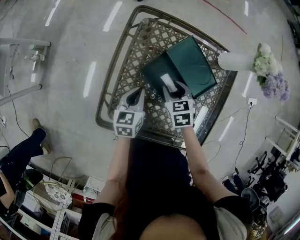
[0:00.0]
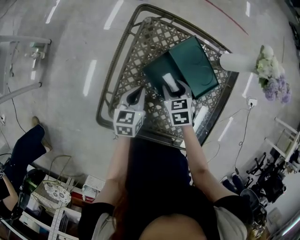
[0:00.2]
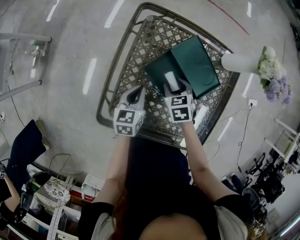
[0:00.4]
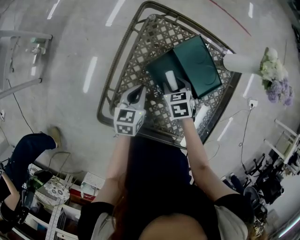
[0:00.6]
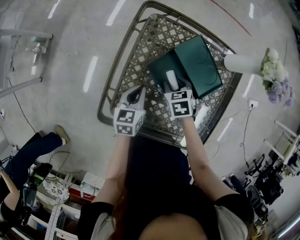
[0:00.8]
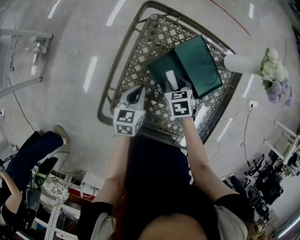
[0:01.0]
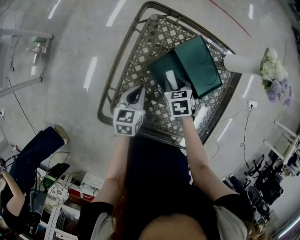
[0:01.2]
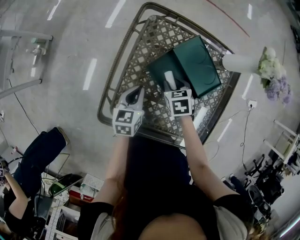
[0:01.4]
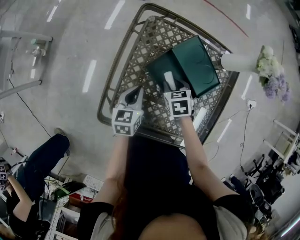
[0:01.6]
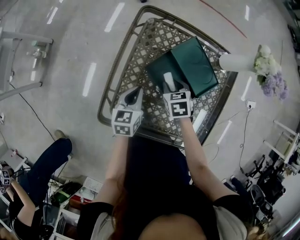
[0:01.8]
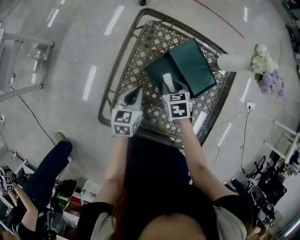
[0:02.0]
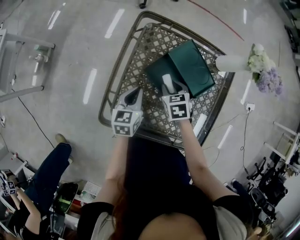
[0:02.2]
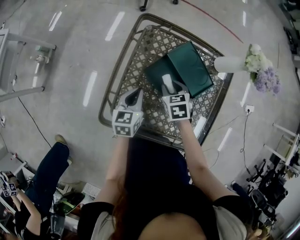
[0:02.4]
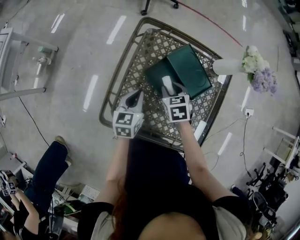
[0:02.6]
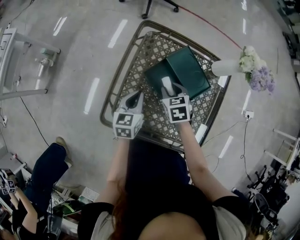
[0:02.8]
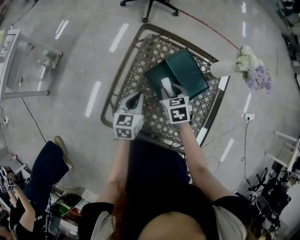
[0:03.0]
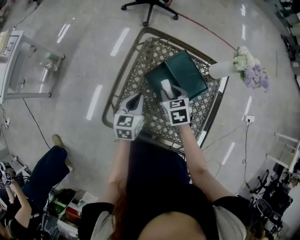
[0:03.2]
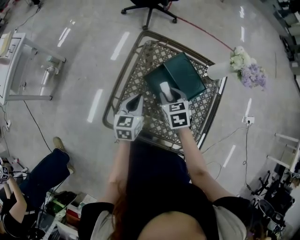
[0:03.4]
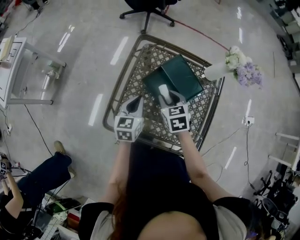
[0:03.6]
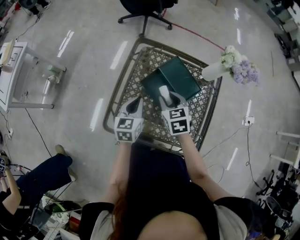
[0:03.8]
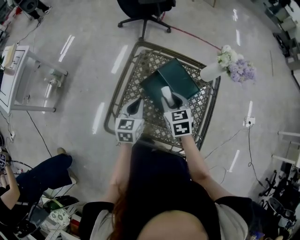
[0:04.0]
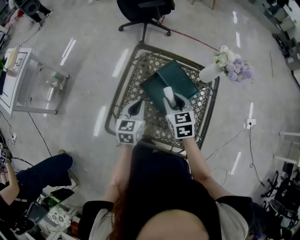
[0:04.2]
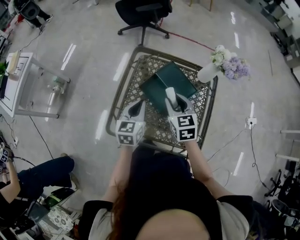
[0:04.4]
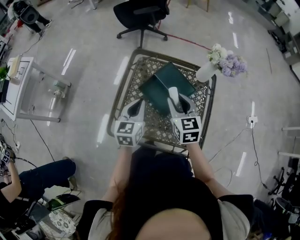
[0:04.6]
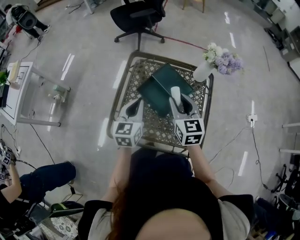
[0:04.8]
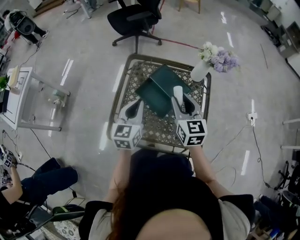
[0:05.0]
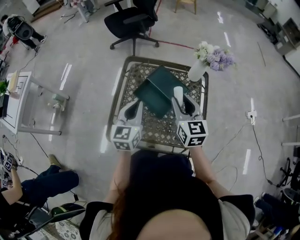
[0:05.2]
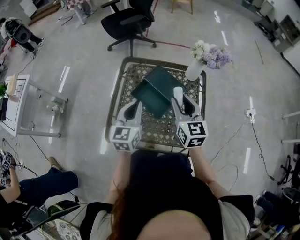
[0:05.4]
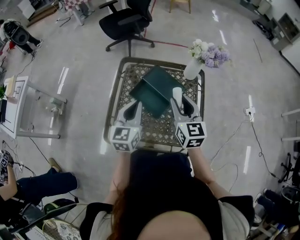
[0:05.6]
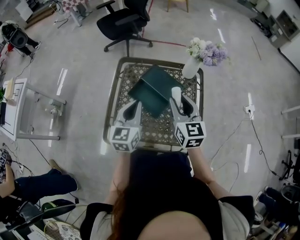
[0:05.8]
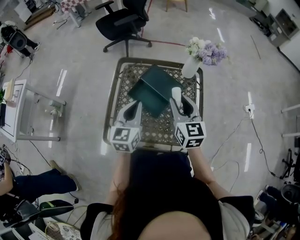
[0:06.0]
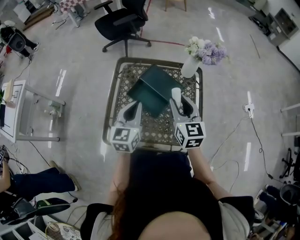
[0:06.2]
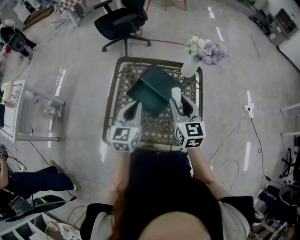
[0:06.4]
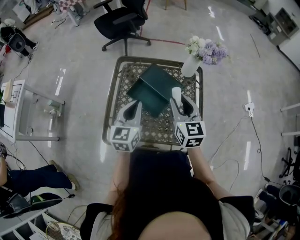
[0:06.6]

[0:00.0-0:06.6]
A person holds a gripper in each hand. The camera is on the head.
0:00.0 to 0:01.6: The grippers stay close to where they were, moving slightly.
0:01.6 to 0:03.2: The grippers both shift upward by some 10 cm.
0:03.2 to 0:05.0: The right gripper is displaced upward and to the right by about 20 cm, and tilts its fingers some 30 degrees upward. Meanwhile the left gripper shifts about 15 cm upward.
0:05.0 to 0:06.6: There are only small adjustments of the grippers.

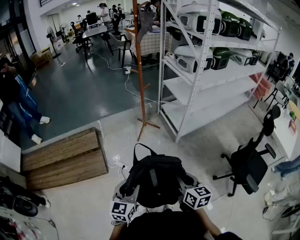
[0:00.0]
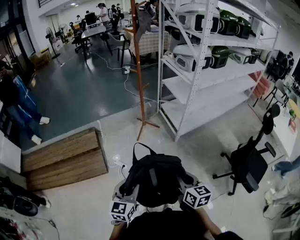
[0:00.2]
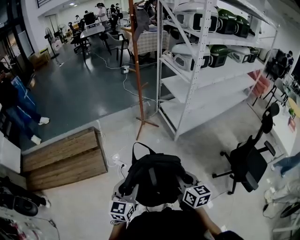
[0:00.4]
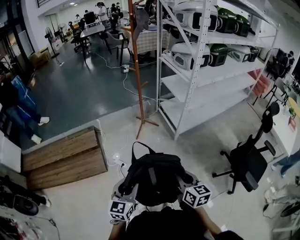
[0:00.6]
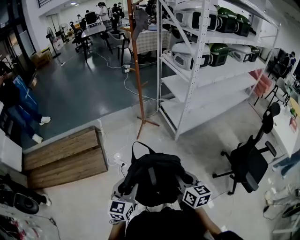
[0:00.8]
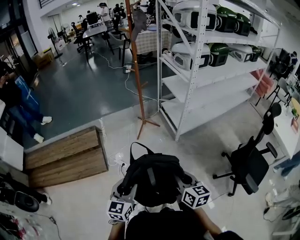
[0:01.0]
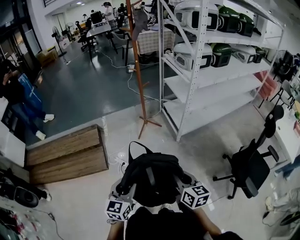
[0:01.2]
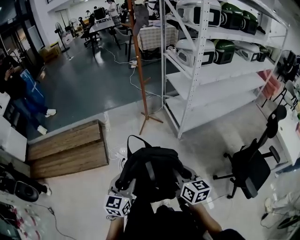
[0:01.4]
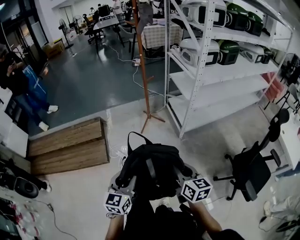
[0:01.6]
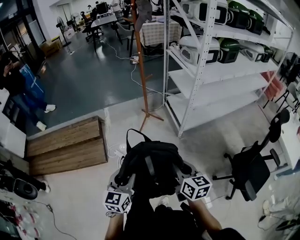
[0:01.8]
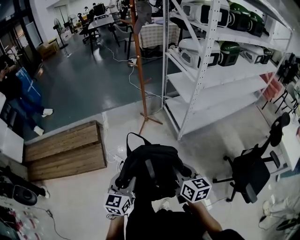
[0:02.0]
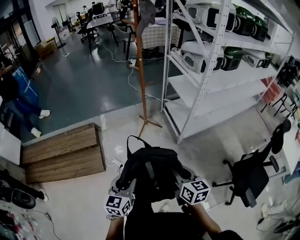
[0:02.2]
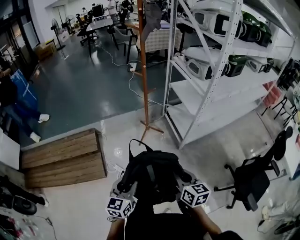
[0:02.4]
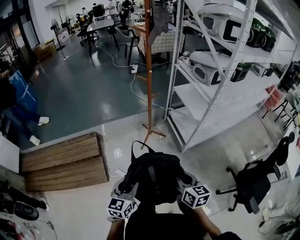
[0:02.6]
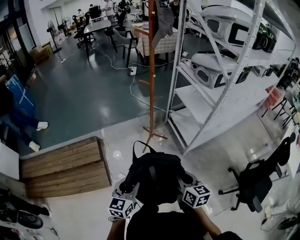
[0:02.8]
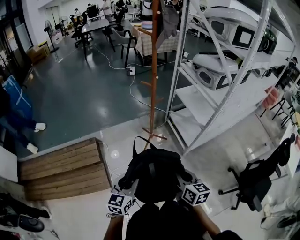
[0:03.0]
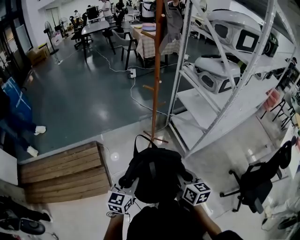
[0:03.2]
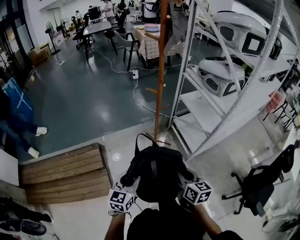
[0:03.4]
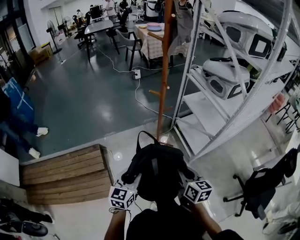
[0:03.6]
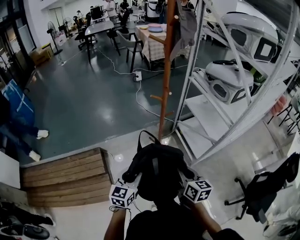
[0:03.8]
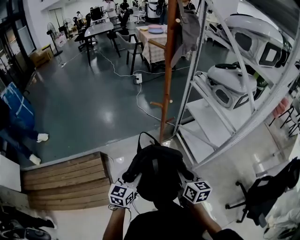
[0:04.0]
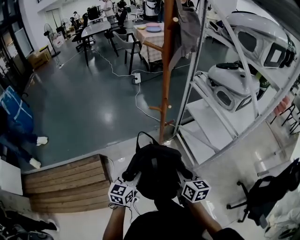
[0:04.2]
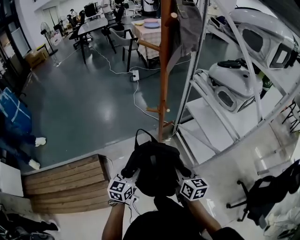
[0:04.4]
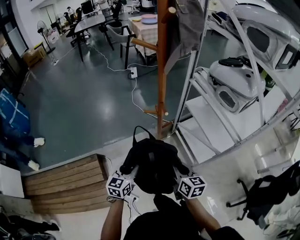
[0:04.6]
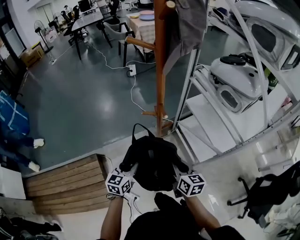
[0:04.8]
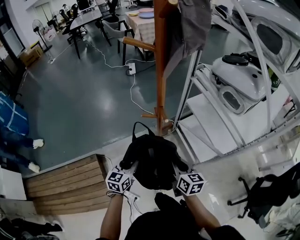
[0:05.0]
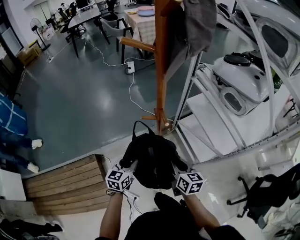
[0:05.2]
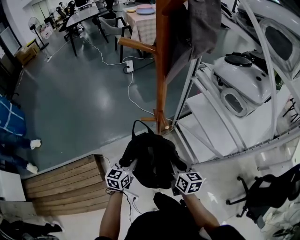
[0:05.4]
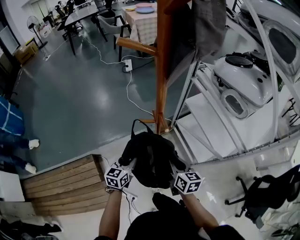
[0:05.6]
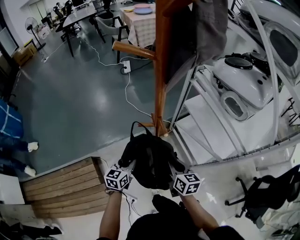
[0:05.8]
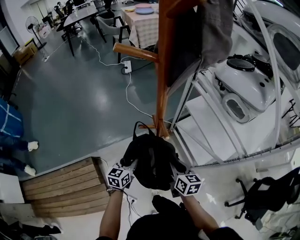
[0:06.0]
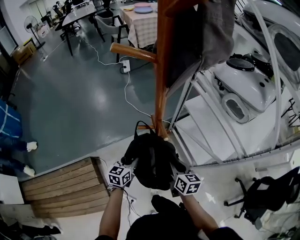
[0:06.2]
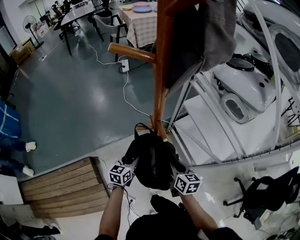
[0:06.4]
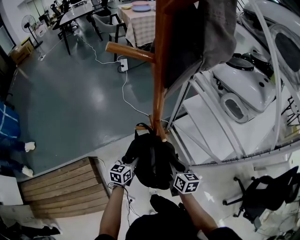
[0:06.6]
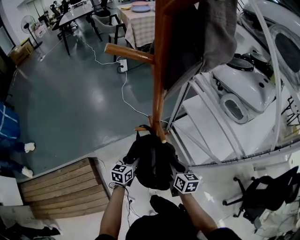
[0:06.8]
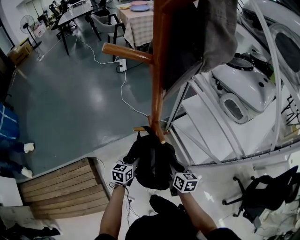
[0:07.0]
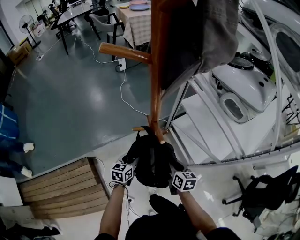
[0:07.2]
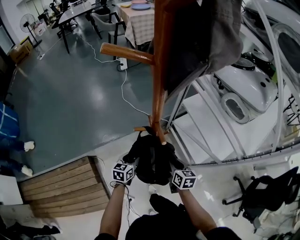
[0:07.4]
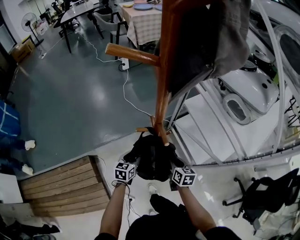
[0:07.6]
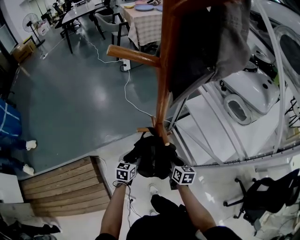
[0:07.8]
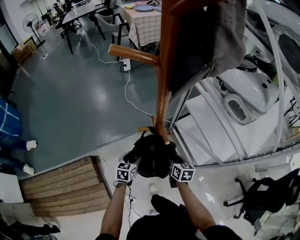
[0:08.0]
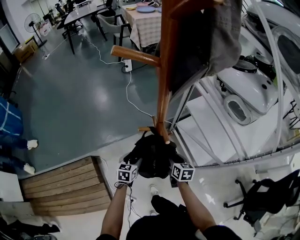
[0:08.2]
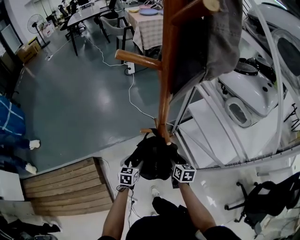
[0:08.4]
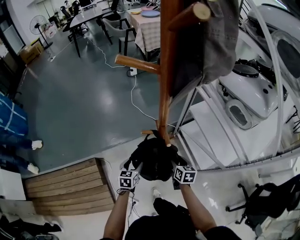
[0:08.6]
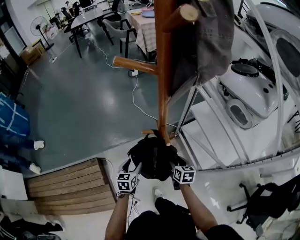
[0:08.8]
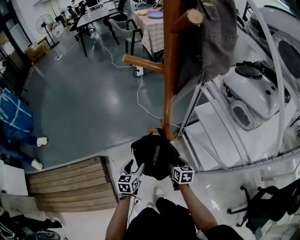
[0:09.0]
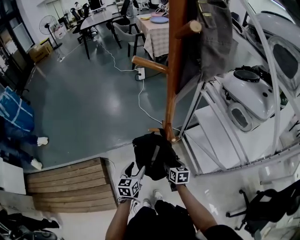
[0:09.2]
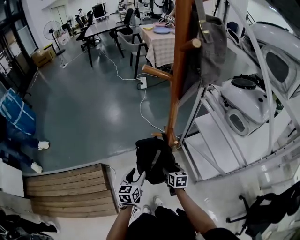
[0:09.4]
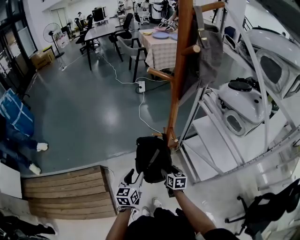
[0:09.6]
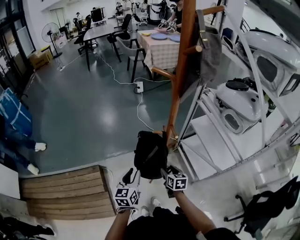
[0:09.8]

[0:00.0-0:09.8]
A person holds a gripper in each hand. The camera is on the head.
0:00.0 to 0:01.4: The two grippers go some 5 cm to the right.
0:01.4 to 0:02.8: The grippers both shift forward and to the left by some 30 cm.
0:02.8 to 0:04.2: Both grippers travel together forward, about 30 cm.
0:04.2 to 0:05.6: Both grippers travel together forward and downward, approximately 20 cm.
0:05.6 to 0:07.0: Both grippers travel together downward, approximately 10 cm.
0:07.0 to 0:08.4: The right gripper ends up some 5 cm from where it was, and opens; the left gripper opens up.
0:08.4 to 0:09.8: The left gripper goes roughly 20 cm upward and backward, rotates roughly 30 degrees, and closes its fingers; the right gripper shifts approximately 15 cm to the left, backward and upward.

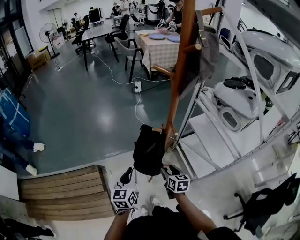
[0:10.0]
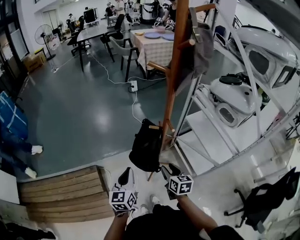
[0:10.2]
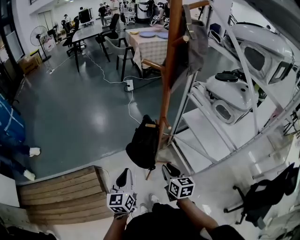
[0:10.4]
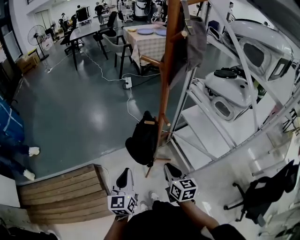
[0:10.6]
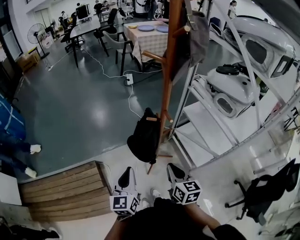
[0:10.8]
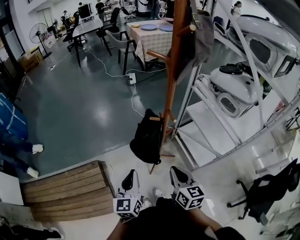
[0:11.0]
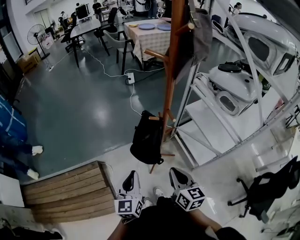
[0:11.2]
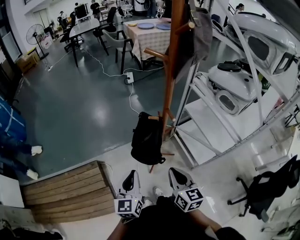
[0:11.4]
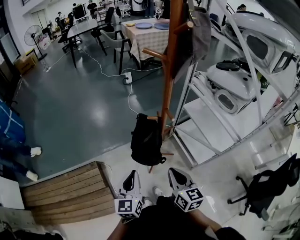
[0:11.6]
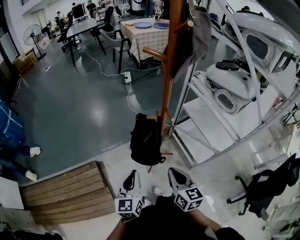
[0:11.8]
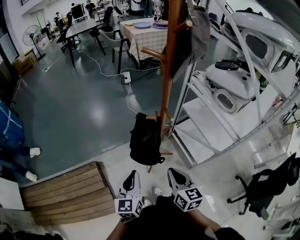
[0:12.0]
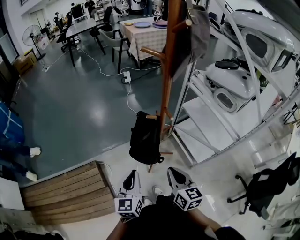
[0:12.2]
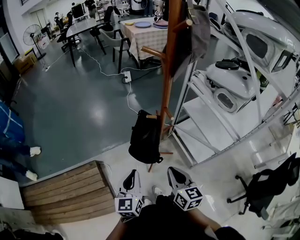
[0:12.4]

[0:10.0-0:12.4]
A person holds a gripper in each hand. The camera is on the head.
0:10.0 to 0:11.2: The right gripper moves upward and backward, about 15 cm, and closes, while the left gripper travels backward by roughly 5 cm.
0:11.2 to 0:12.4: The grippers stay close to where they were, moving slightly.

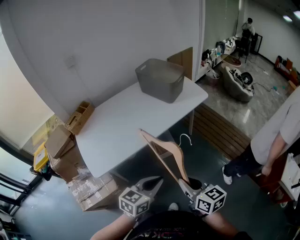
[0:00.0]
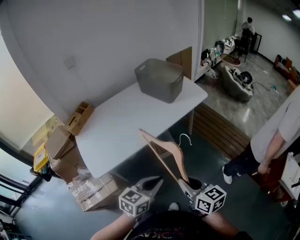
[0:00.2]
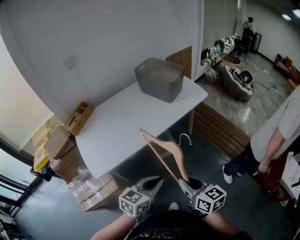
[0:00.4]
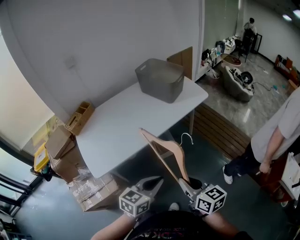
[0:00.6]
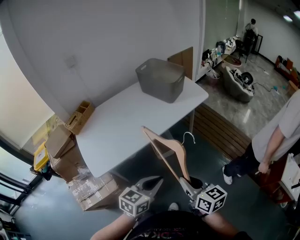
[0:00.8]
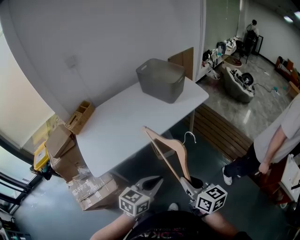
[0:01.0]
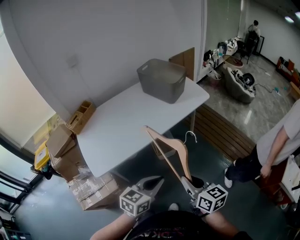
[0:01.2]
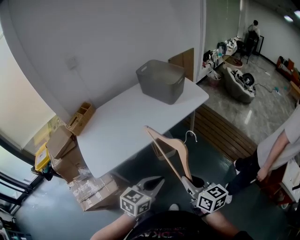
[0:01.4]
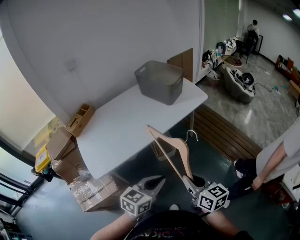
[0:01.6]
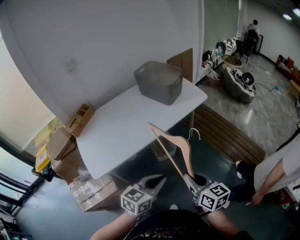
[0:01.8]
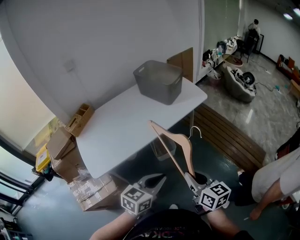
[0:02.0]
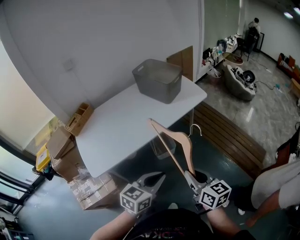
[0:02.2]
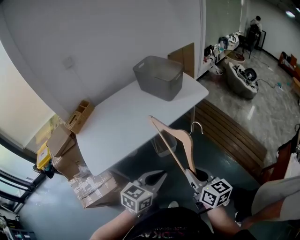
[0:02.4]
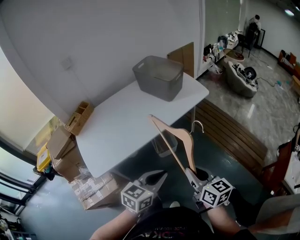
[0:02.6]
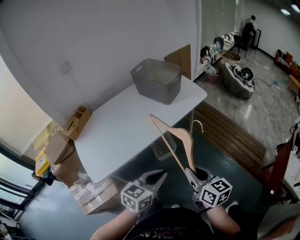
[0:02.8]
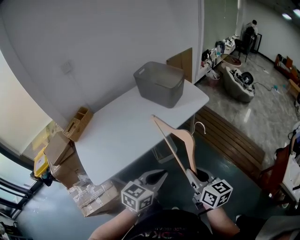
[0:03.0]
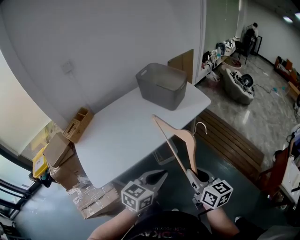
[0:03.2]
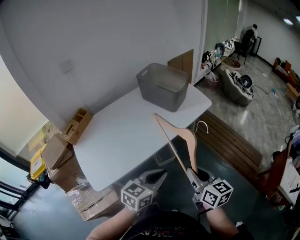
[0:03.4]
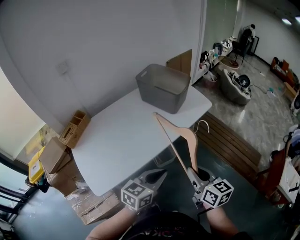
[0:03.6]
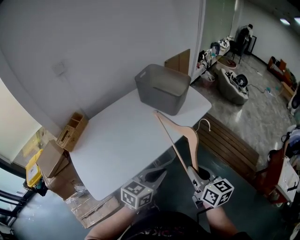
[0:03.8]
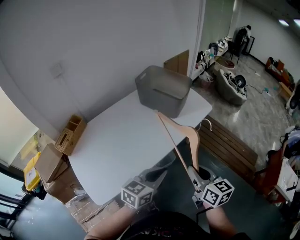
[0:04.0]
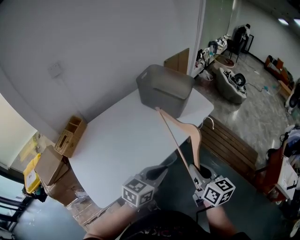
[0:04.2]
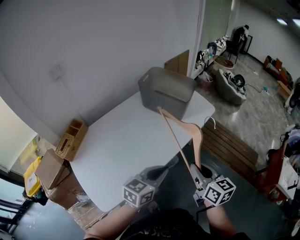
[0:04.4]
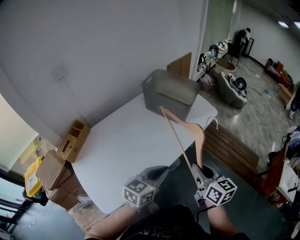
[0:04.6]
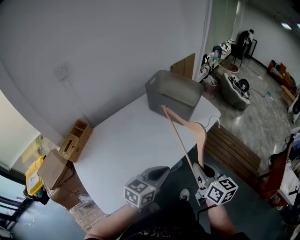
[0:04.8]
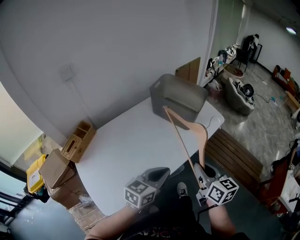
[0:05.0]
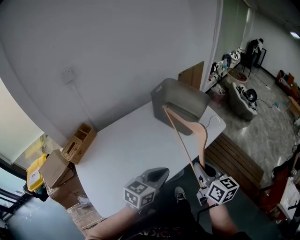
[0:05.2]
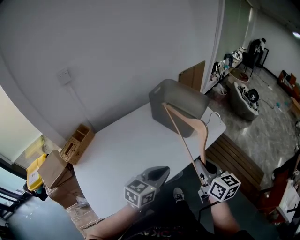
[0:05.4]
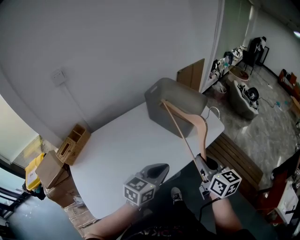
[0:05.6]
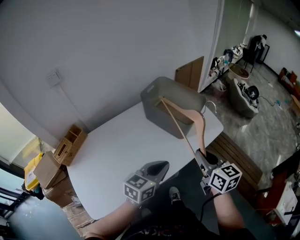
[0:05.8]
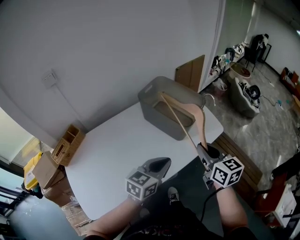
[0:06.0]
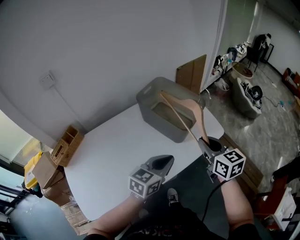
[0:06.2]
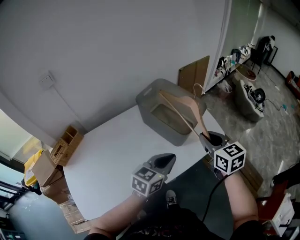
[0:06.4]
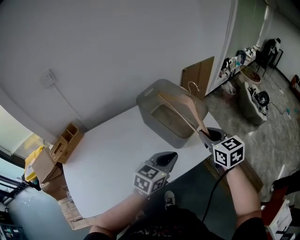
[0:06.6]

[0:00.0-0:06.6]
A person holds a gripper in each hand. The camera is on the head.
0:00.0 to 0:01.6: The grippers move only a little.
0:01.6 to 0:03.2: Both grippers travel together forward, approximately 10 cm.
0:03.2 to 0:05.0: The grippers both shift forward and to the left by approximately 20 cm.
0:05.0 to 0:06.6: The right gripper travels forward by approximately 35 cm, and swivels roughly 30 degrees. The left gripper heads forward and to the right, covering roughly 30 cm.
